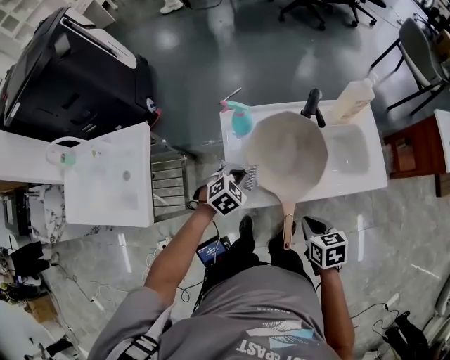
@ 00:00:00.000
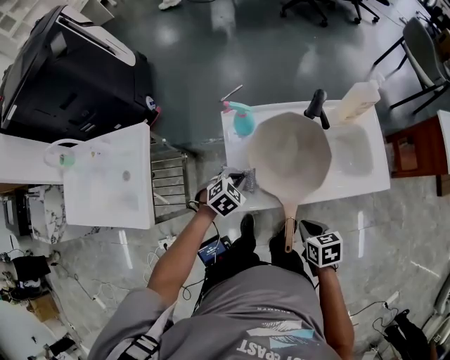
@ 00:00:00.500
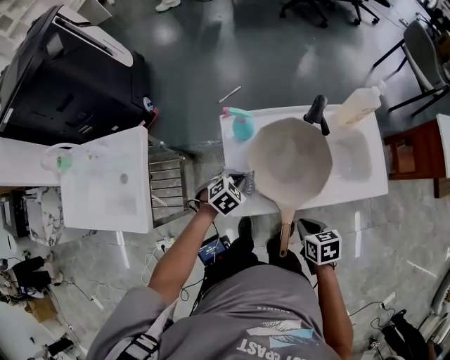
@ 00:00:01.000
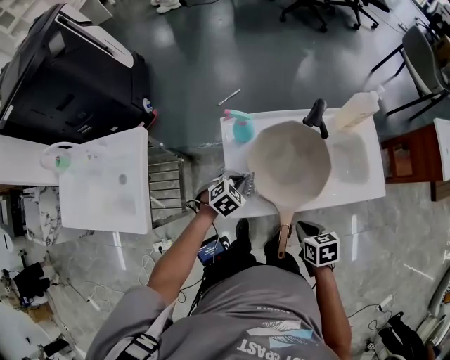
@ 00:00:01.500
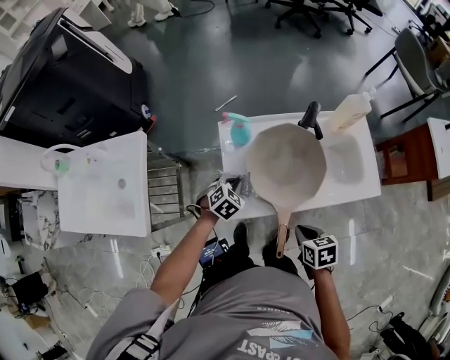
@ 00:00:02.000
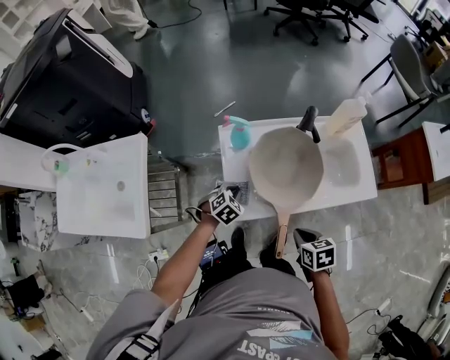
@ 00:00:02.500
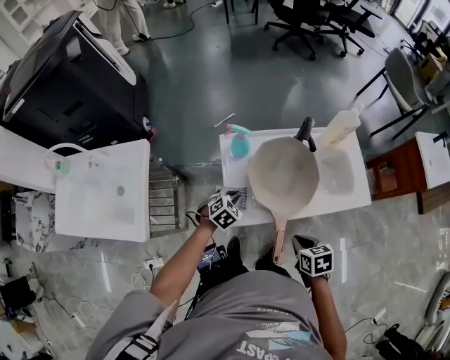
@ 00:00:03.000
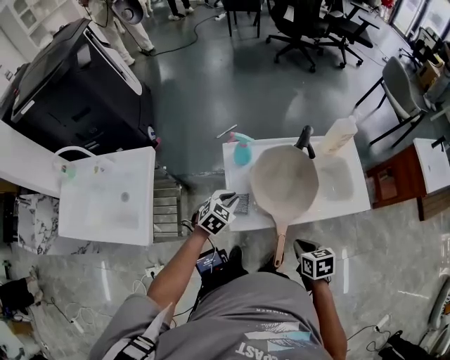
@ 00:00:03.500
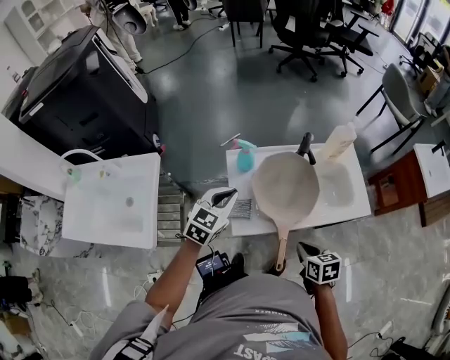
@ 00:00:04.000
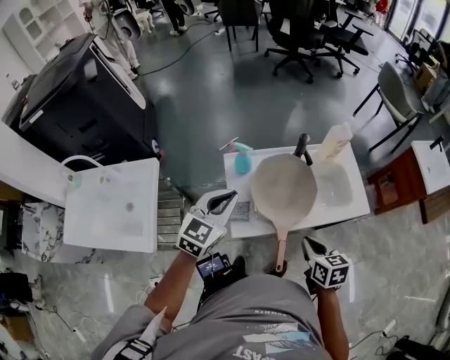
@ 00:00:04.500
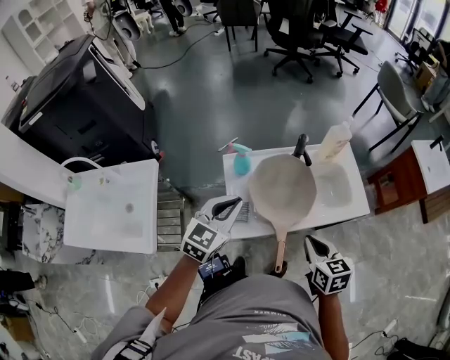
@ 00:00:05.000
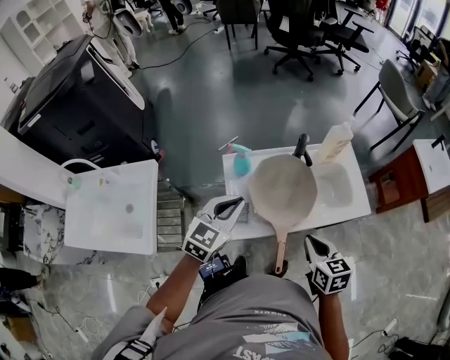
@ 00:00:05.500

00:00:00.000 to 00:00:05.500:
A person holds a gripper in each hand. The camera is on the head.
00:00:00.000 to 00:00:02.000: The left gripper moves roughly 5 cm.
00:00:02.000 to 00:00:03.500: The left gripper is displaced upward by some 10 cm.
00:00:03.500 to 00:00:05.500: The left gripper is displaced upward by roughly 20 cm, and changes its angle by approximately 30 degrees; the right gripper goes about 10 cm upward, and changes its angle by some 20 degrees.

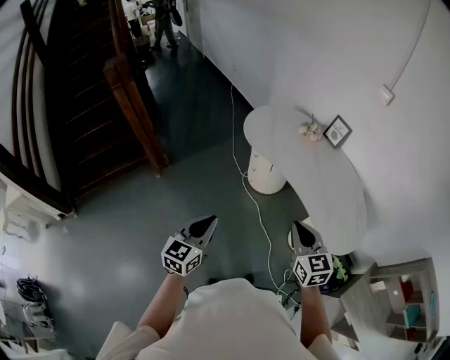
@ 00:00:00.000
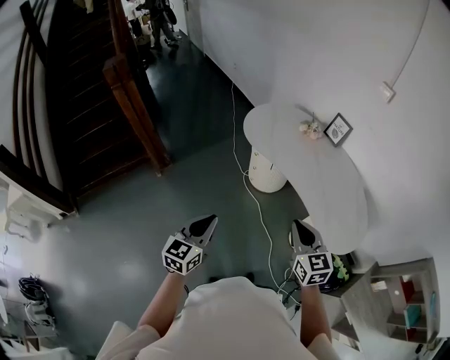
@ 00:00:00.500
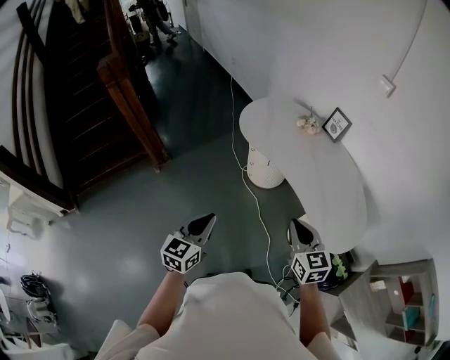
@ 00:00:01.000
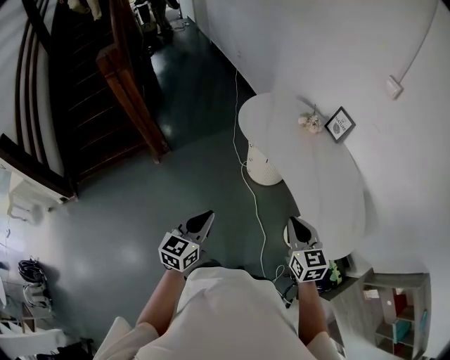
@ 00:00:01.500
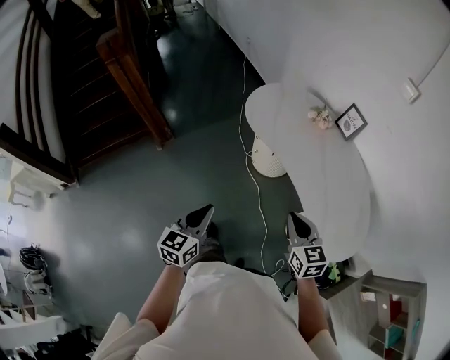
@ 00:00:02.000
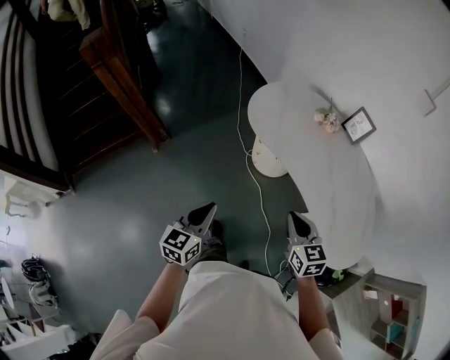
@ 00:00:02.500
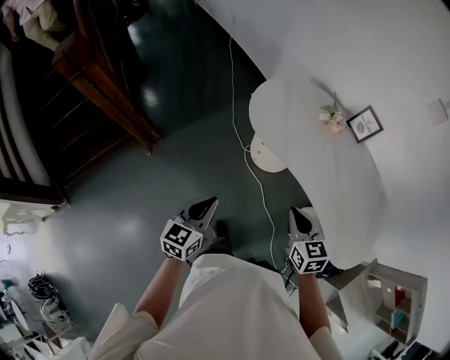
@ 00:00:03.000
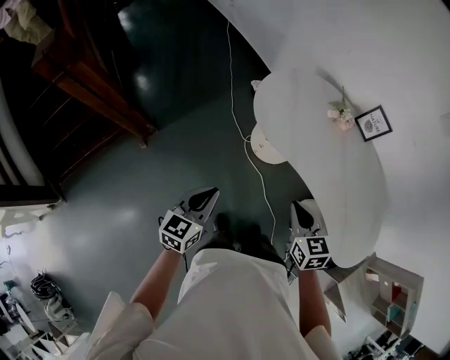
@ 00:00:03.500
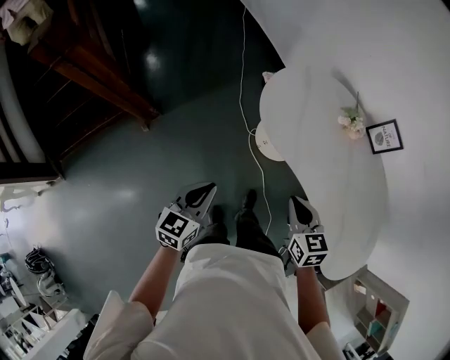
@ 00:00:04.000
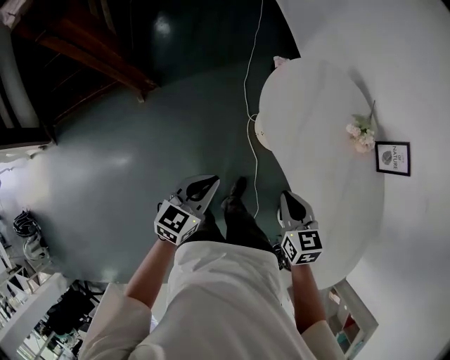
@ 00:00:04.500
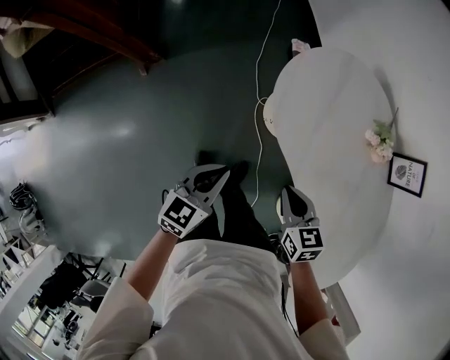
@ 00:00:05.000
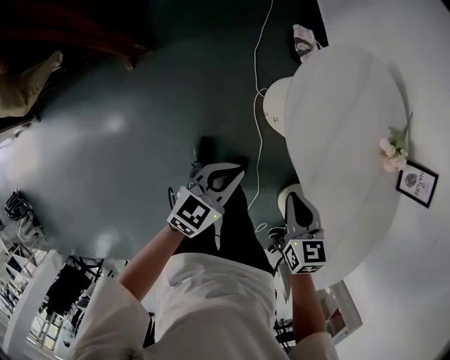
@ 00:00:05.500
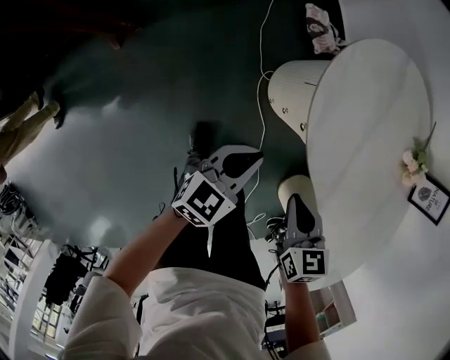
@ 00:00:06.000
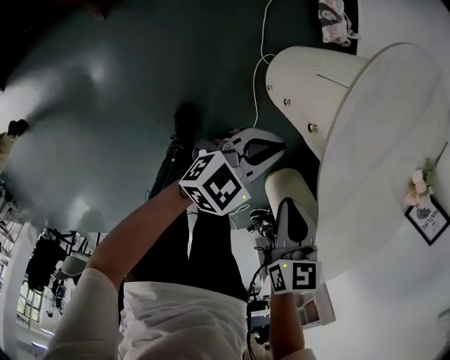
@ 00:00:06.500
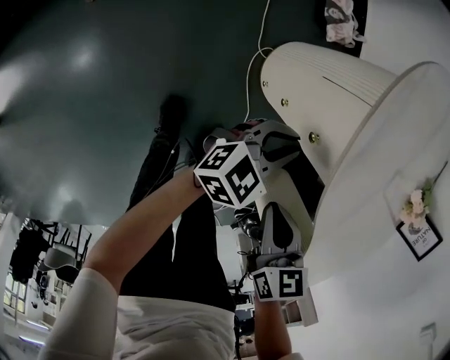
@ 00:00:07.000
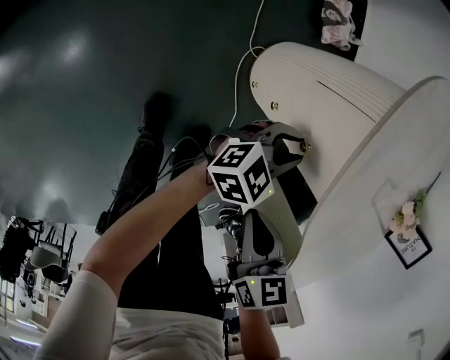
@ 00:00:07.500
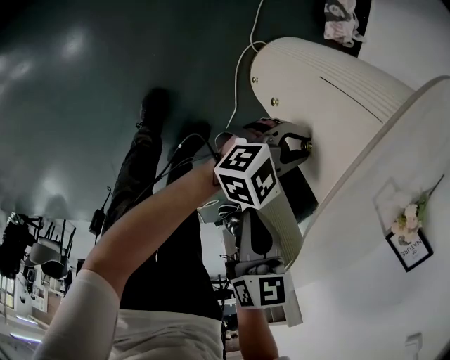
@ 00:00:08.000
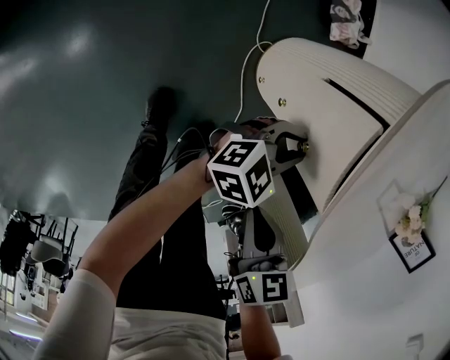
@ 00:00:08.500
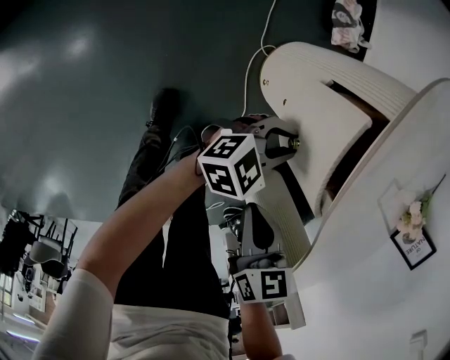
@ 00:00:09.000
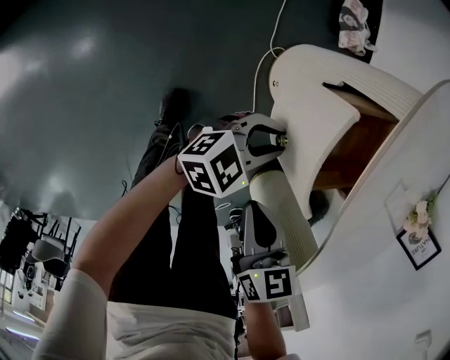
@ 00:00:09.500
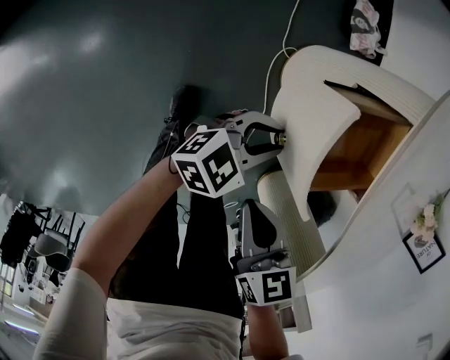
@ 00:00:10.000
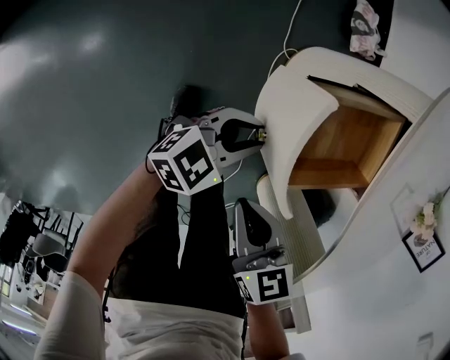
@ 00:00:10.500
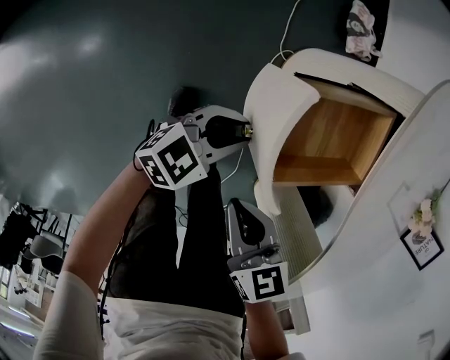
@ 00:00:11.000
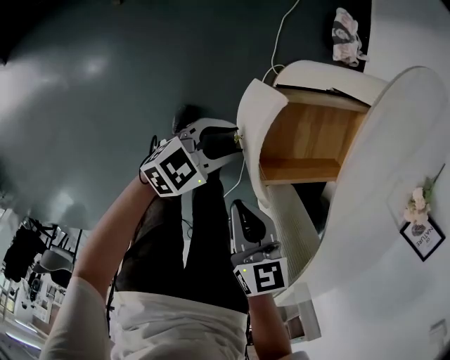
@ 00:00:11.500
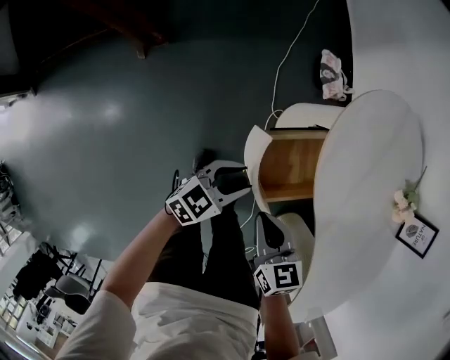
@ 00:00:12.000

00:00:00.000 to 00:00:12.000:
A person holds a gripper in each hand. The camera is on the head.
00:00:00.000 to 00:00:02.000: The right gripper is displaced forward, downward and to the right by roughly 15 cm; the left gripper is displaced to the right, forward and downward by roughly 10 cm.
00:00:02.000 to 00:00:04.000: Both grippers move forward and to the left, some 35 cm.
00:00:04.000 to 00:00:06.000: Both grippers travel together downward and forward, roughly 30 cm.
00:00:06.000 to 00:00:08.000: The right gripper is displaced downward by approximately 15 cm, while the left gripper is displaced downward, to the right and forward by approximately 25 cm, and opens its fingers.
00:00:08.000 to 00:00:10.000: The left gripper goes some 15 cm to the left and backward. The right gripper goes roughly 10 cm to the left and backward.
00:00:10.000 to 00:00:12.000: The left gripper goes roughly 15 cm upward and to the left; the right gripper is displaced upward by some 10 cm.

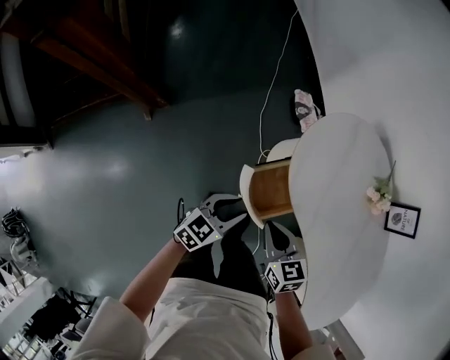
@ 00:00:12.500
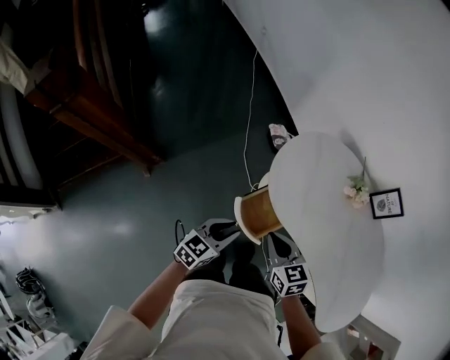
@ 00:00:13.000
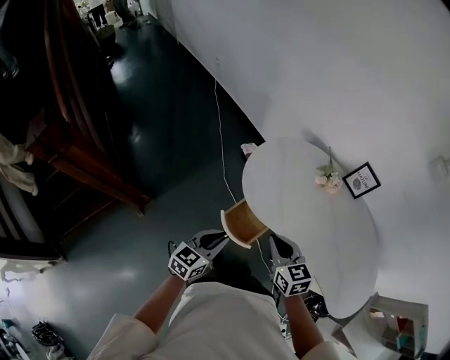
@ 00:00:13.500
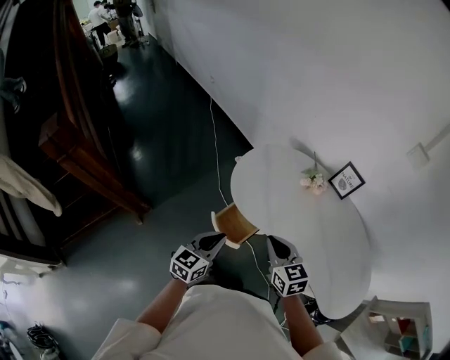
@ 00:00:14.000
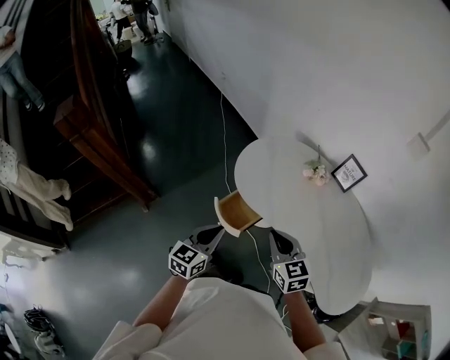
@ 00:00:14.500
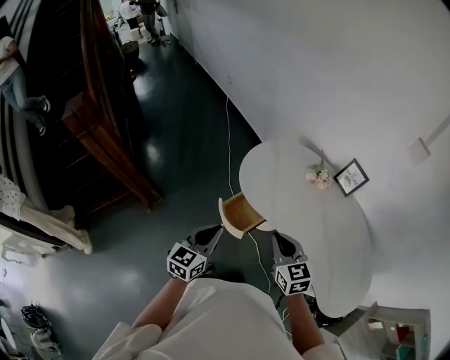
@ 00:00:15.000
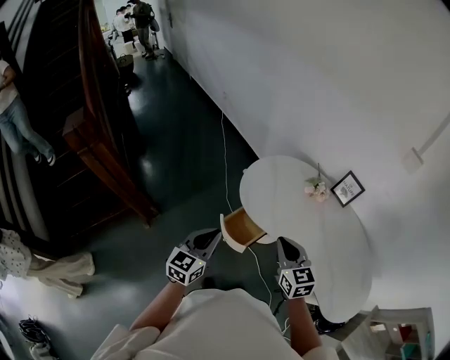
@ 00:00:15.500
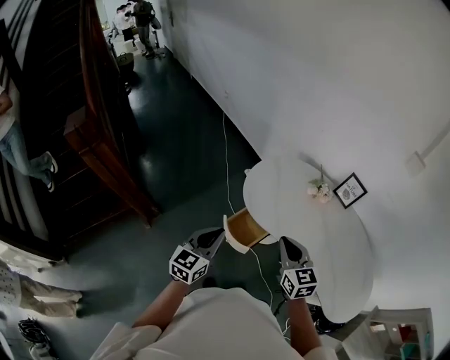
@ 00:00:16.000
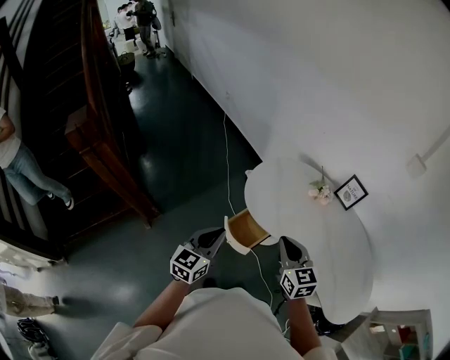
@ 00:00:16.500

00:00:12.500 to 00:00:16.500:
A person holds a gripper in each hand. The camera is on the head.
00:00:12.500 to 00:00:14.500: The left gripper goes approximately 30 cm upward and backward, and closes its fingers, while the right gripper heads upward, to the right and backward, covering approximately 30 cm, and changes its angle by roughly 30 degrees.
00:00:14.500 to 00:00:16.500: The left gripper is displaced to the left and upward by approximately 10 cm; the right gripper ends up about 5 cm from where it was.

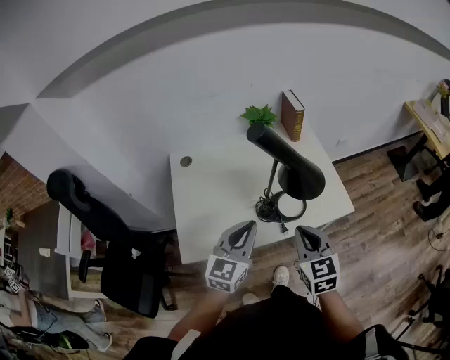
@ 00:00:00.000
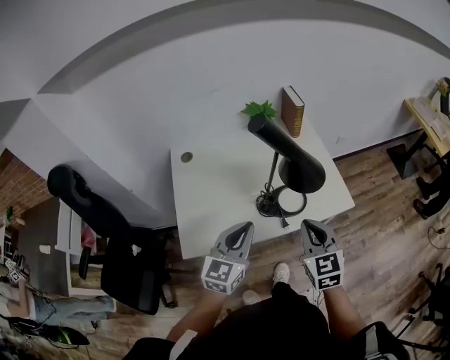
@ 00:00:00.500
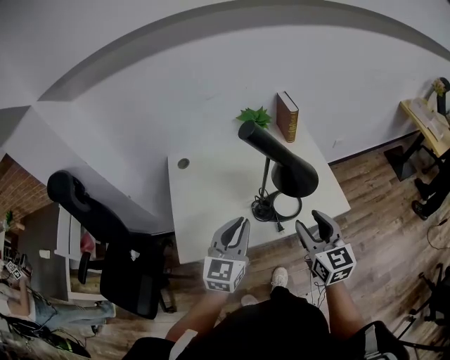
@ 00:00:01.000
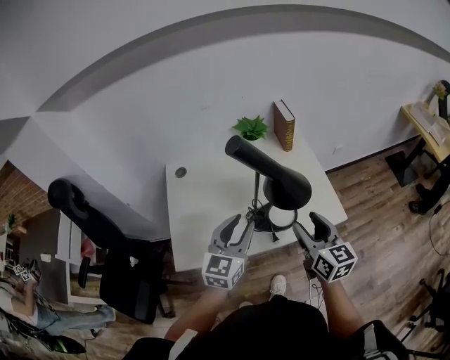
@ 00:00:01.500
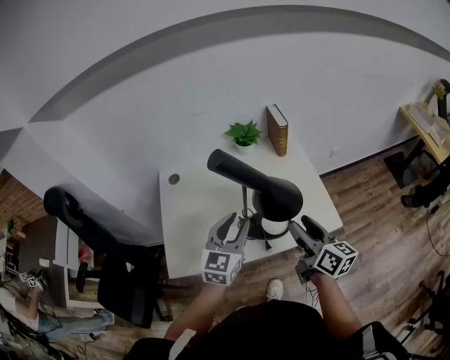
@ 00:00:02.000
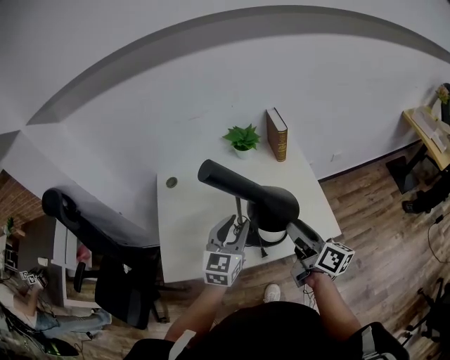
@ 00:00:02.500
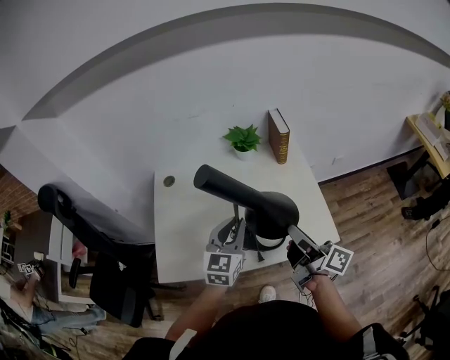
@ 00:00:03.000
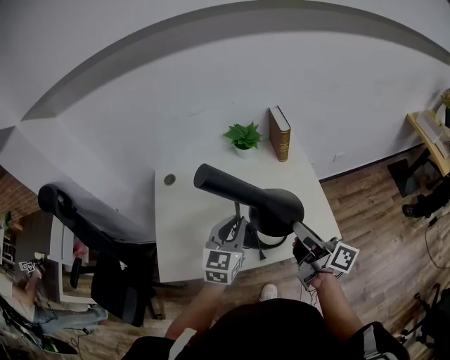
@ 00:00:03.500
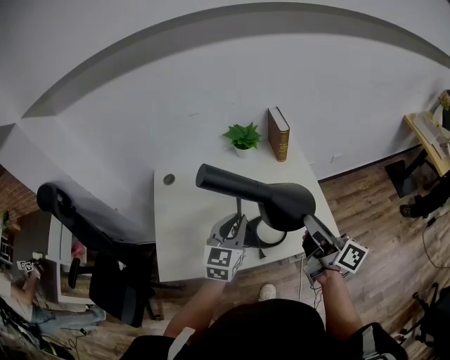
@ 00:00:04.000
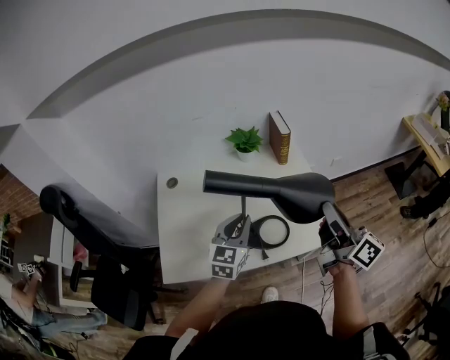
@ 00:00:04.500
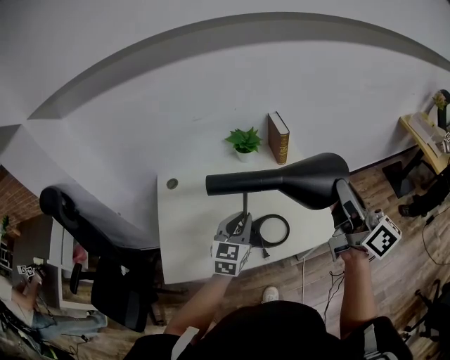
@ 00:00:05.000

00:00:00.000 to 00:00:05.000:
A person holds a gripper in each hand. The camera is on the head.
00:00:00.000 to 00:00:02.500: Both grippers move forward and to the right, approximately 15 cm. The left gripper opens up. The right gripper rotates around the line of its fingers by roughly 50 degrees, clockwise from behind, and opens its fingers.
00:00:02.500 to 00:00:05.000: The right gripper heads upward, covering approximately 20 cm, rotates roughly 30 degrees, and closes up.
